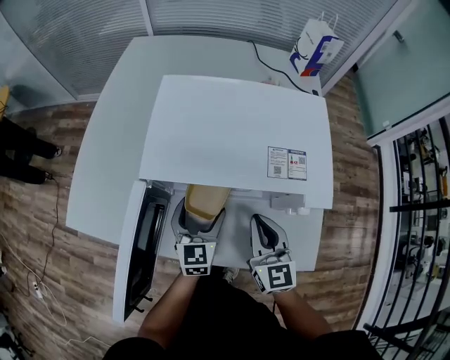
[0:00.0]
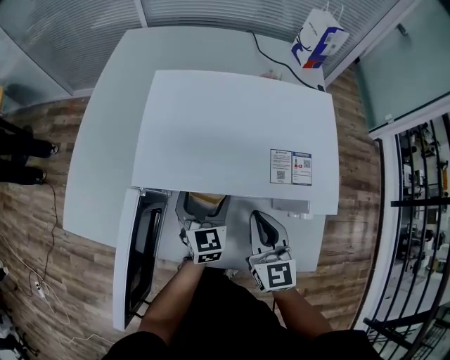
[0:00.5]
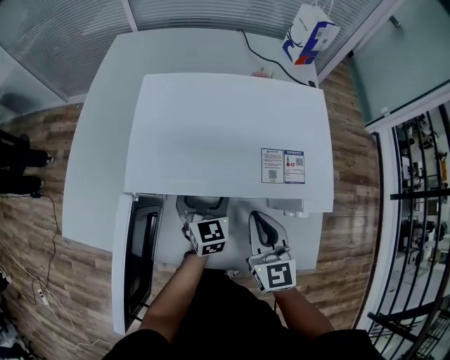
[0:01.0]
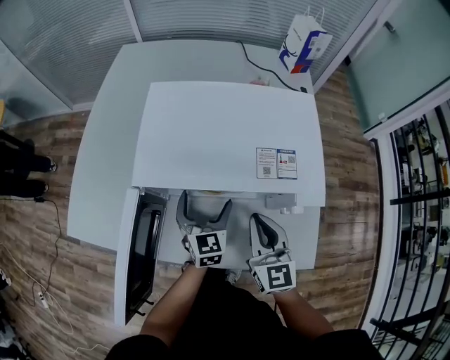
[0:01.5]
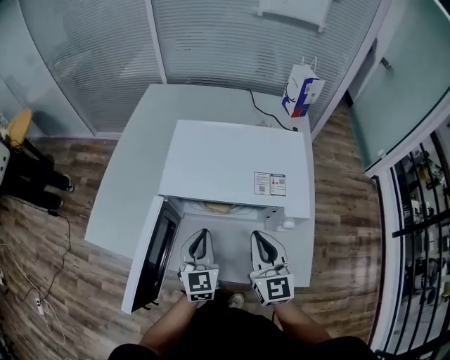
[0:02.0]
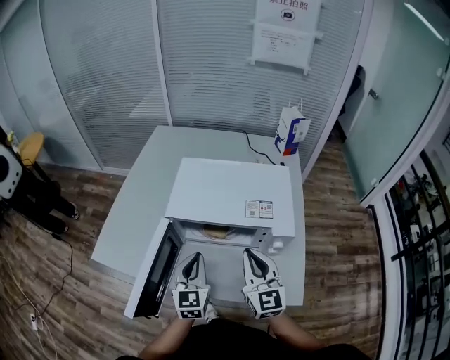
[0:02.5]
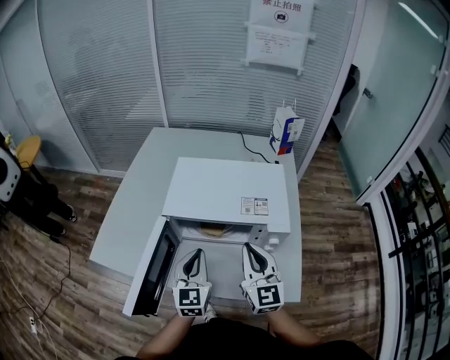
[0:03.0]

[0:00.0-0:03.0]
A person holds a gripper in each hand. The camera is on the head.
0:01.5 to 0:03.0: The left gripper goes approximately 20 cm upward and backward, and closes its fingers. The right gripper is displaced upward by approximately 10 cm.

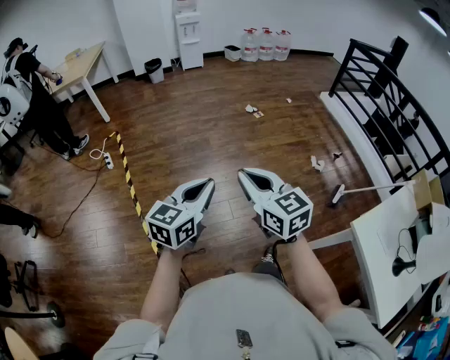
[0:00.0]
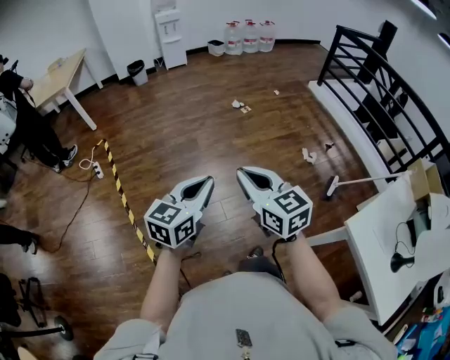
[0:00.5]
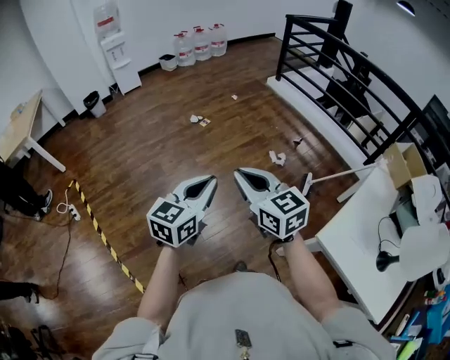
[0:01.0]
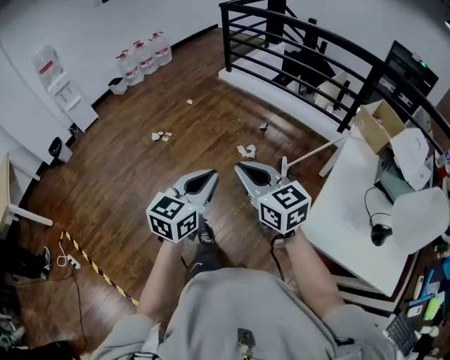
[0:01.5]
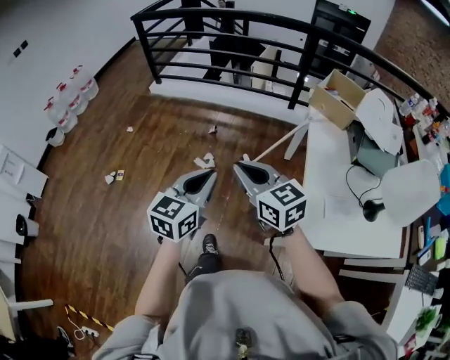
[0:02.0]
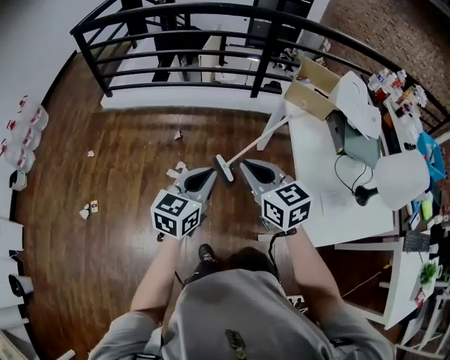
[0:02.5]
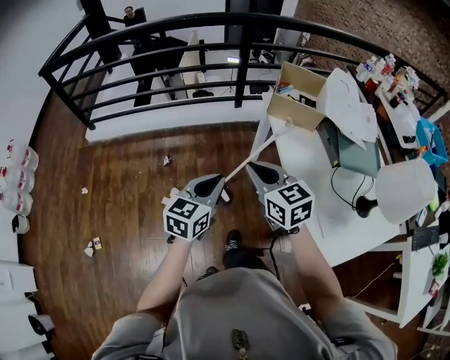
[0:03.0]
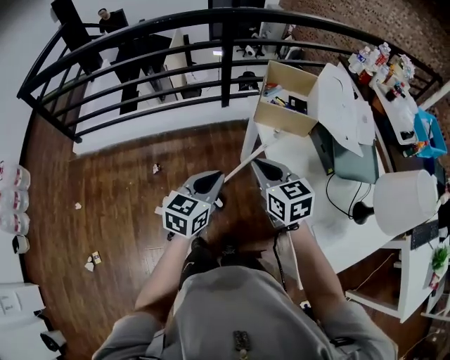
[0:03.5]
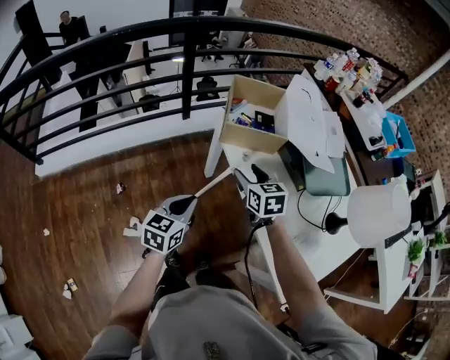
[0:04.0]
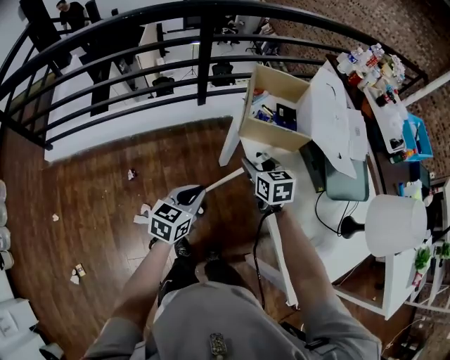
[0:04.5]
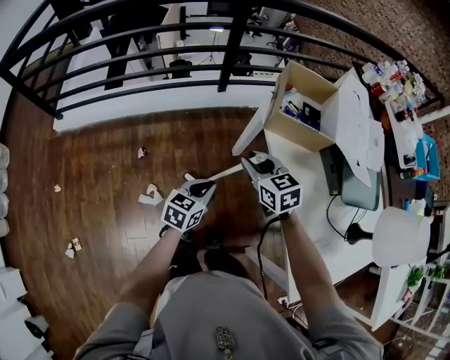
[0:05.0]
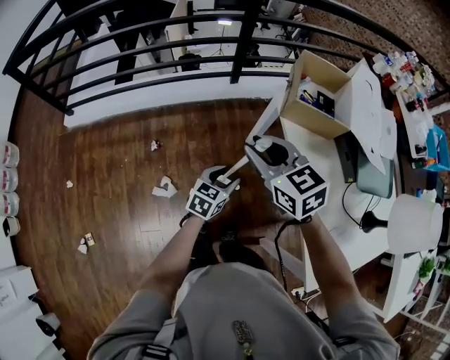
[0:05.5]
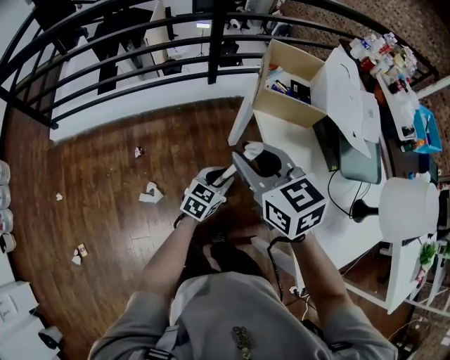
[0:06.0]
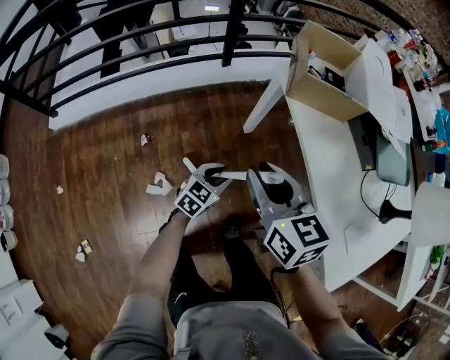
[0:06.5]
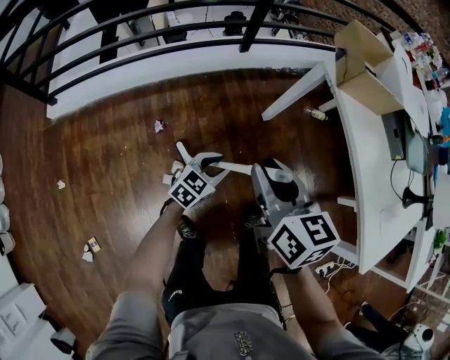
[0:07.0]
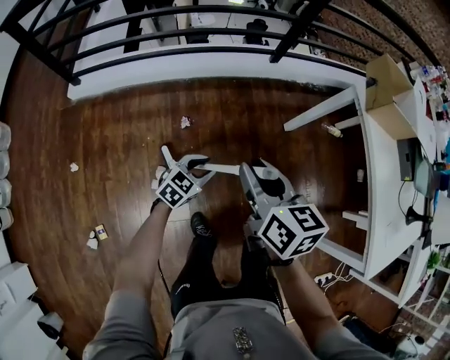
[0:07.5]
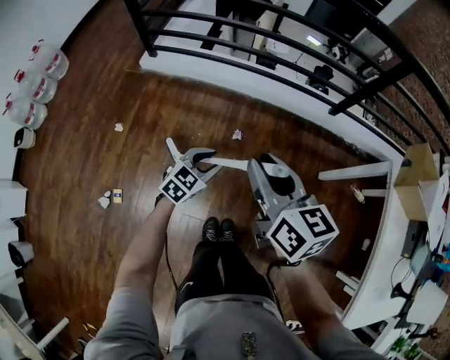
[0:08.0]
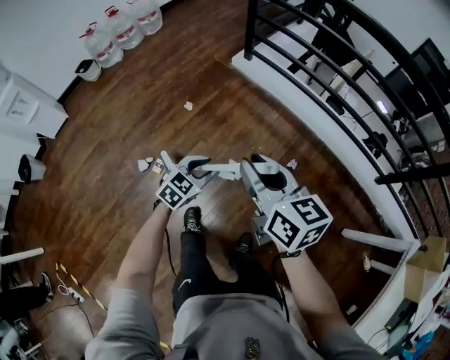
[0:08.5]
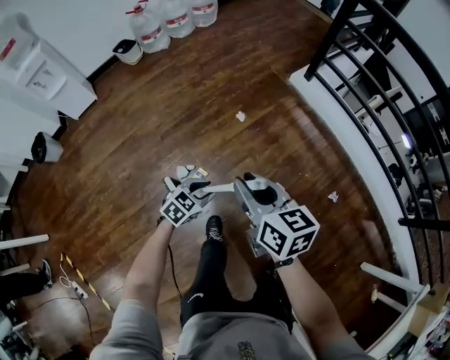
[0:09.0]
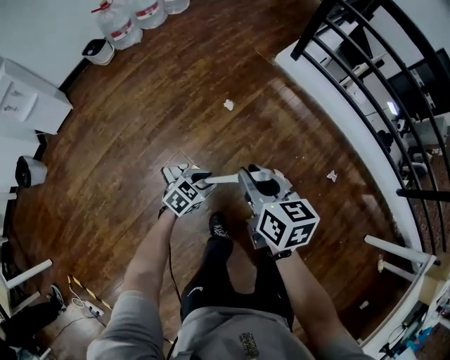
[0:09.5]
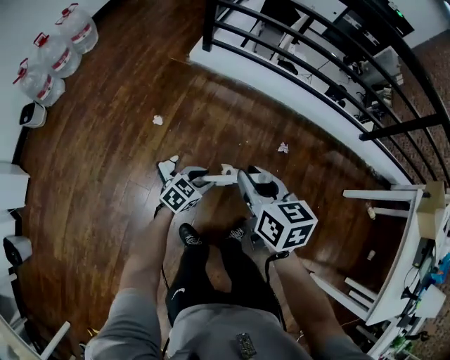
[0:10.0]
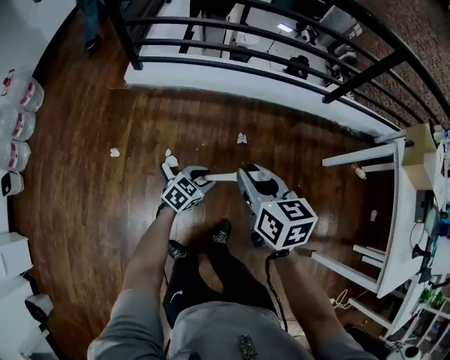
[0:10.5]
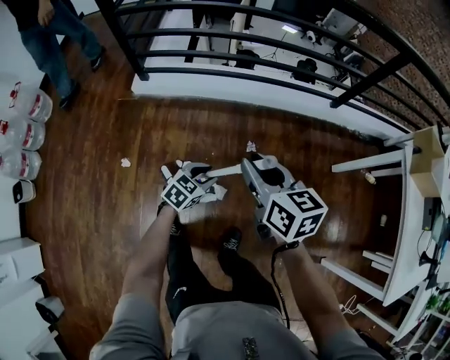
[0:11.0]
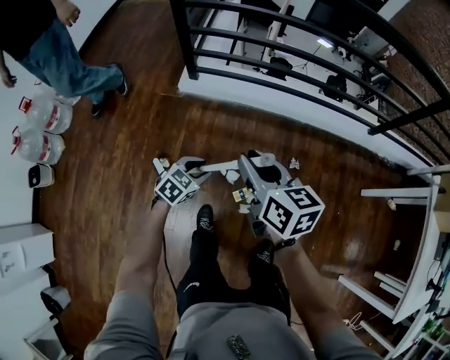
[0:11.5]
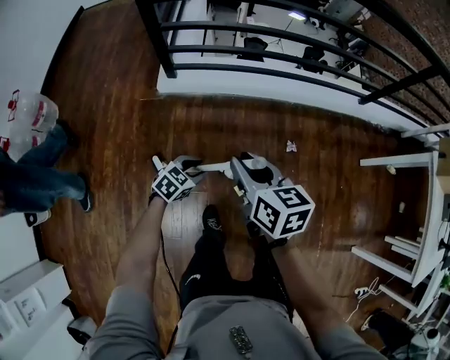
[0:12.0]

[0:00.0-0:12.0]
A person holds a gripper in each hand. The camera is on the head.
0:00.0 to 0:02.0: The pair of grippers is taken approximately 60 cm. The left gripper turns by approximately 60 degrees. Meanwhile the right gripper swivels roughly 60 degrees.
0:02.0 to 0:04.0: Both grippers are carried about 40 cm. The right gripper swivels some 60 degrees, and opens its fingers; the left gripper rotates some 40 degrees.
0:04.0 to 0:06.0: The right gripper is displaced to the left, upward and backward by about 20 cm, rotates about 30 degrees, and closes up. The left gripper heads downward, covering approximately 10 cm, and opens up.
0:06.0 to 0:08.0: The pair of grippers is taken some 60 cm. The right gripper swivels about 20 degrees.
0:10.0 to 0:12.0: Both grippers travel together forward and to the left, some 25 cm. The left gripper turns by some 20 degrees, while the right gripper swivels some 20 degrees.

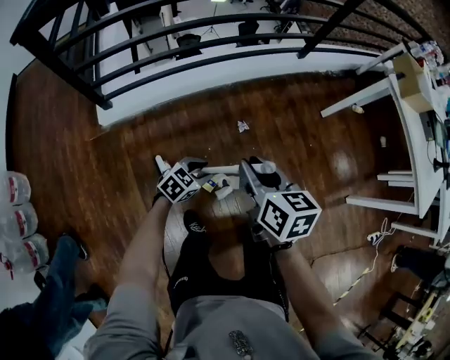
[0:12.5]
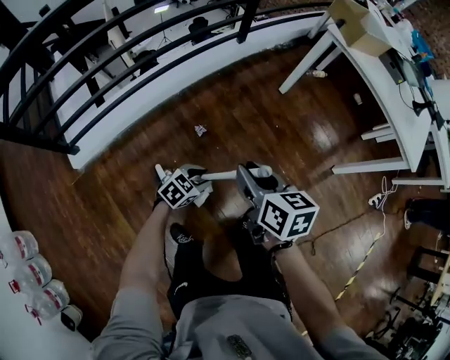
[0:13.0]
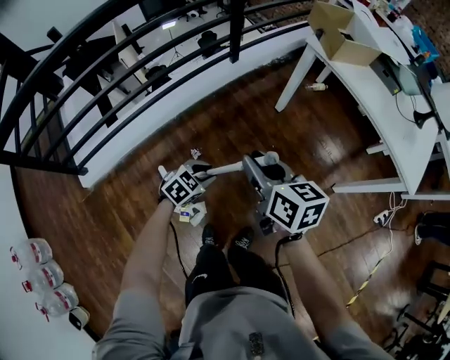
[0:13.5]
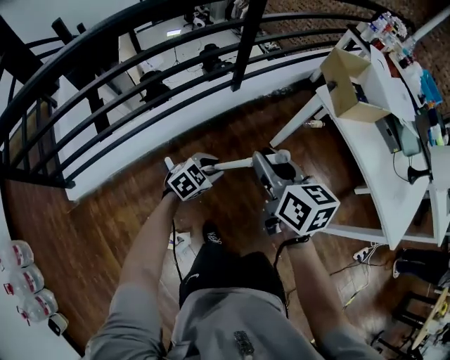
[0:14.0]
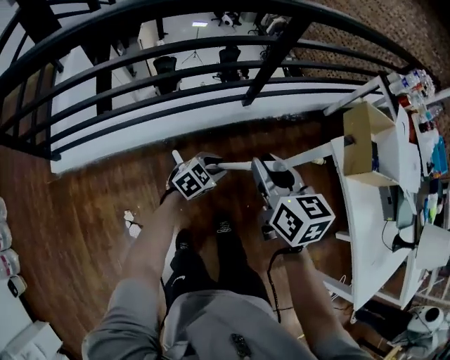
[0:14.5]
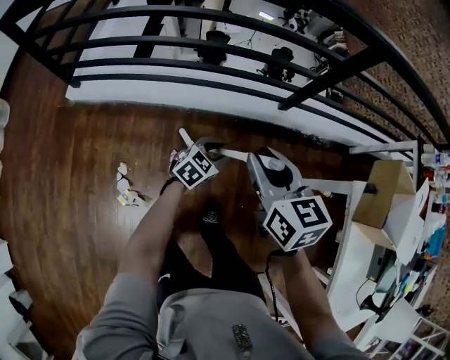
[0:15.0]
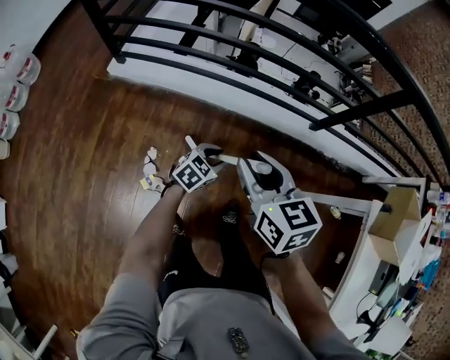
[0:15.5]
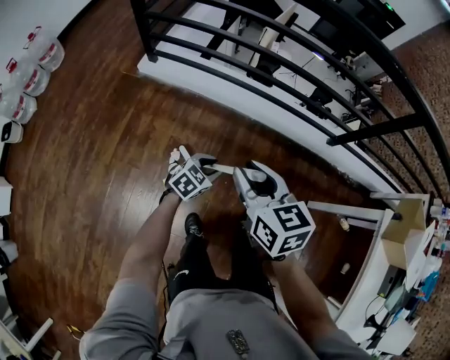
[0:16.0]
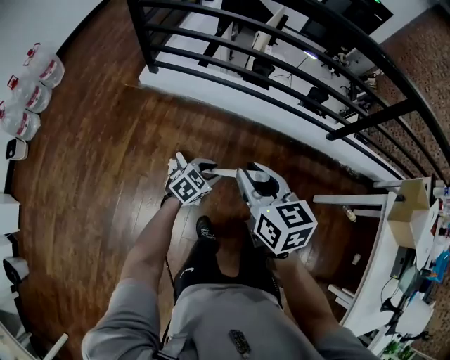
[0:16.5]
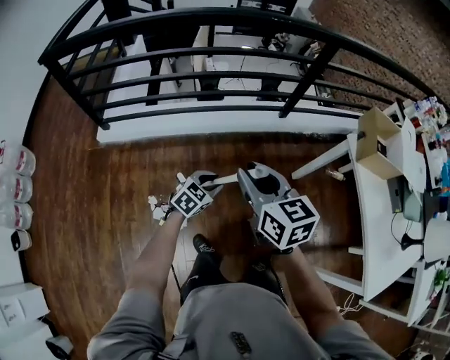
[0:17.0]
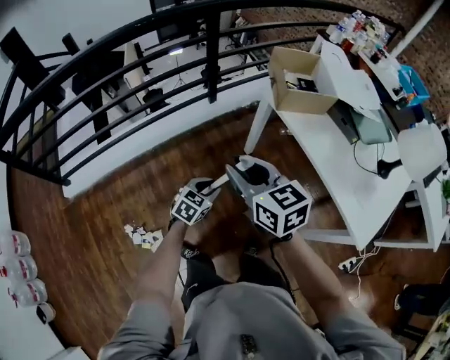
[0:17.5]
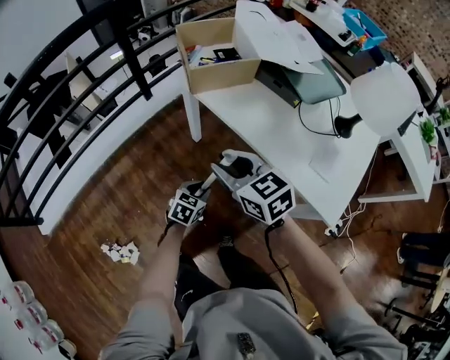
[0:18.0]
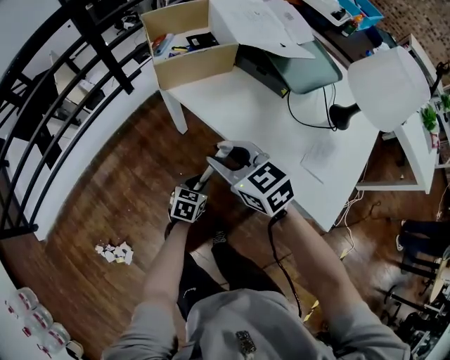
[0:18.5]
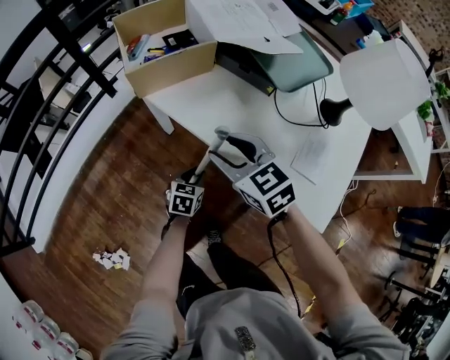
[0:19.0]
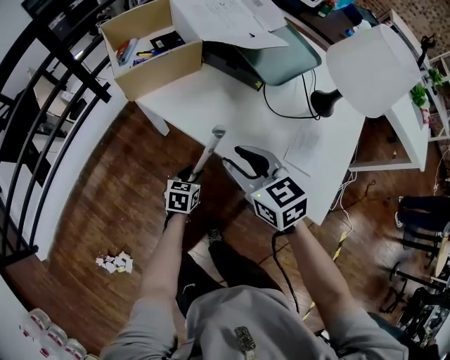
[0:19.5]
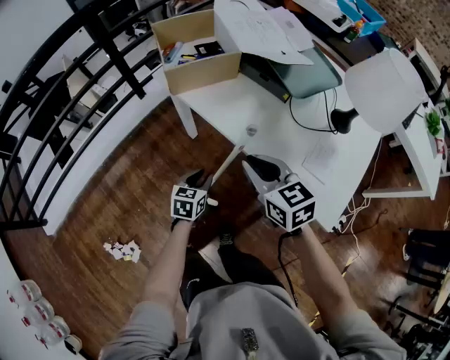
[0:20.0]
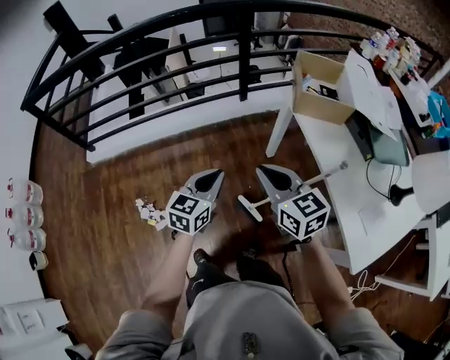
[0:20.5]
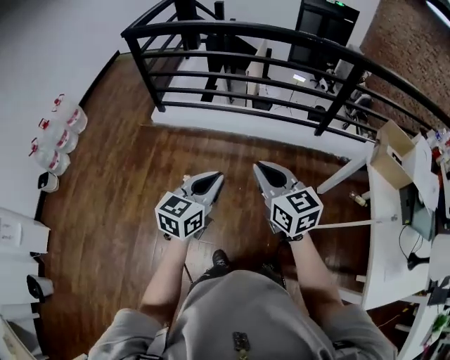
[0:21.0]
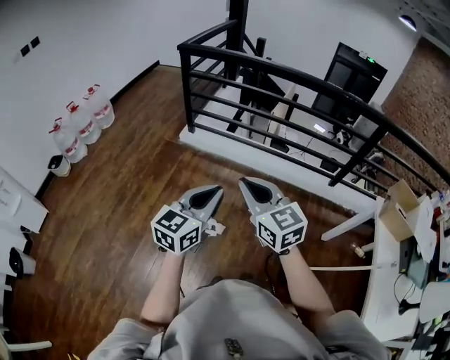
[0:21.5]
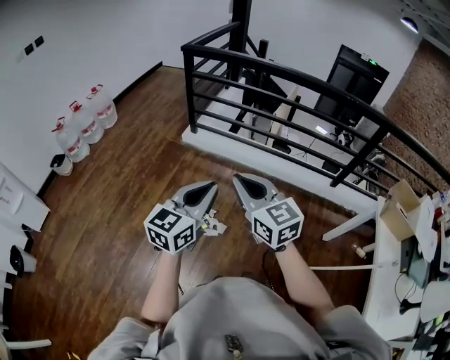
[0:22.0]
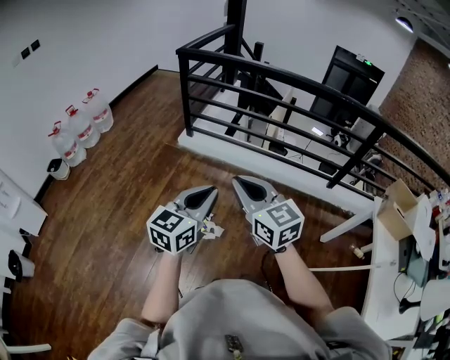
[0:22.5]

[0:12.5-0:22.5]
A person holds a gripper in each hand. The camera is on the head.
0:12.5 to 0:14.5: The two grippers travel together, forward and to the right, roughly 60 cm.
0:14.5 to 0:16.5: The two grippers travel together, about 40 cm. The left gripper turns by some 40 degrees, while the right gripper swivels some 40 degrees.
0:16.5 to 0:18.5: The pair of grippers is taken approximately 70 cm. The left gripper swivels roughly 30 degrees. Meanwhile the right gripper changes its angle by some 30 degrees.
0:18.5 to 0:20.5: The right gripper changes place by about 20 cm, changes its angle by some 20 degrees, and closes, while the left gripper shifts about 25 cm upward, swivels about 40 degrees, and closes up.
0:20.5 to 0:22.5: The two grippers travel together, about 50 cm. The left gripper changes its angle by roughly 40 degrees. Meanwhile the right gripper swivels approximately 40 degrees.

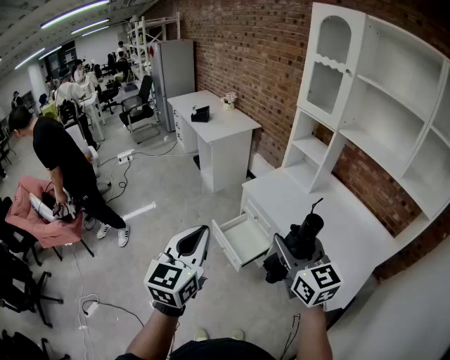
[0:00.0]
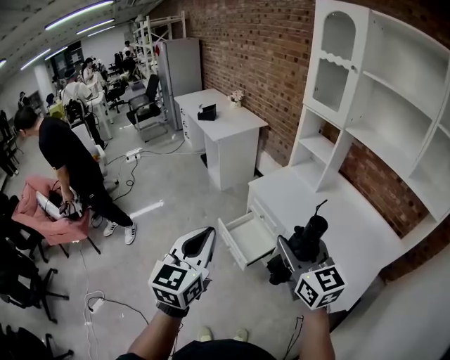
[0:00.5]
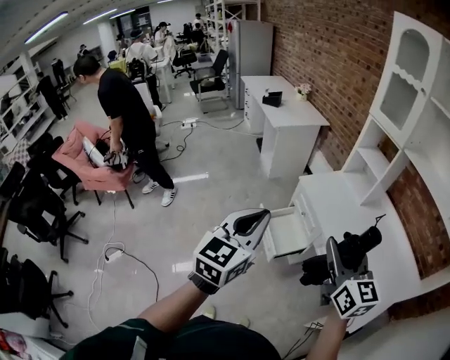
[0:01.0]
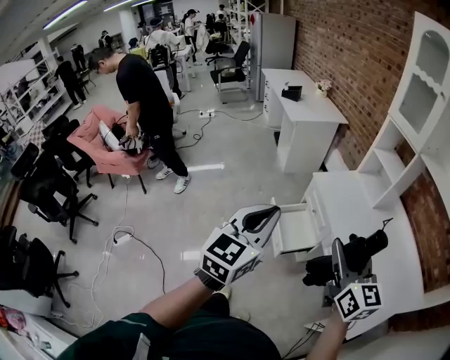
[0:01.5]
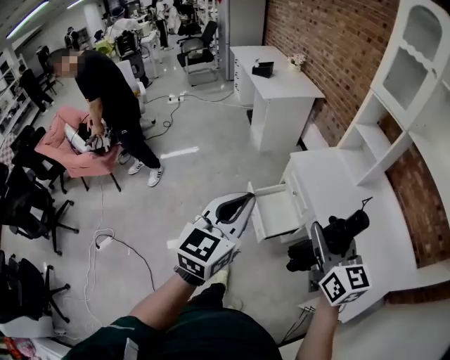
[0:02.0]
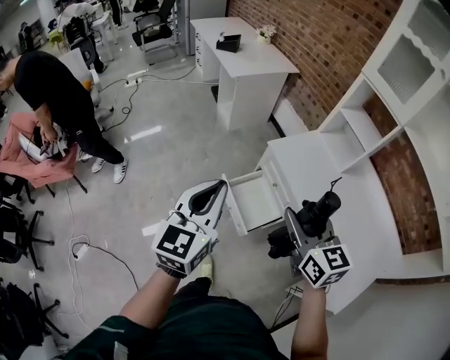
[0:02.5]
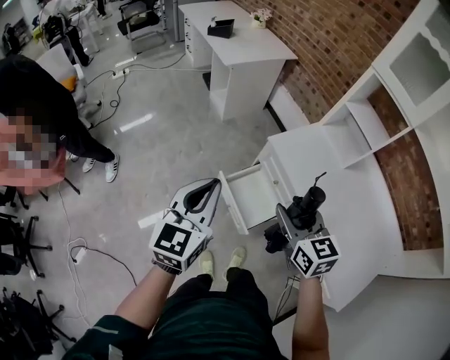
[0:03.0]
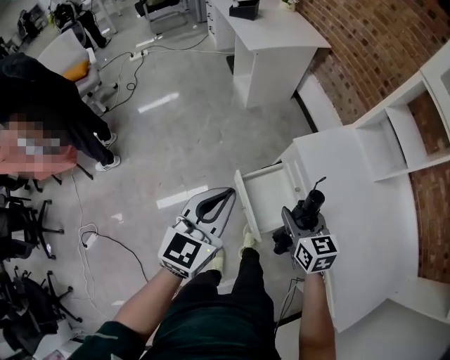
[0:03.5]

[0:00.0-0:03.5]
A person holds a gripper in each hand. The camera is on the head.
0:00.0 to 0:02.0: The grippers both shift forward and downward by roughly 10 cm.
0:02.0 to 0:03.5: Both grippers travel together forward and downward, roughly 35 cm. The right gripper swivels approximately 30 degrees.
